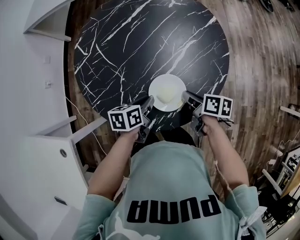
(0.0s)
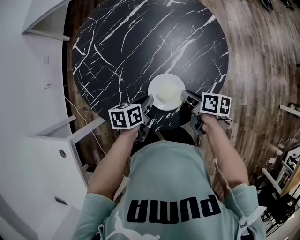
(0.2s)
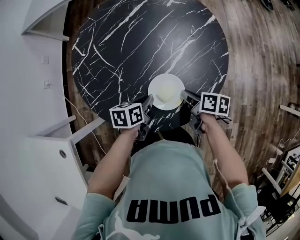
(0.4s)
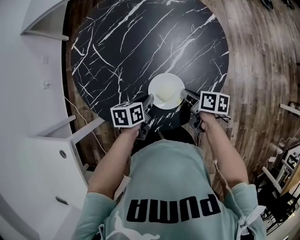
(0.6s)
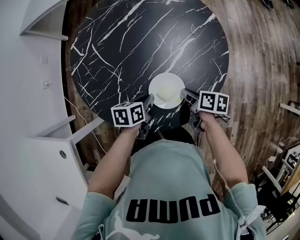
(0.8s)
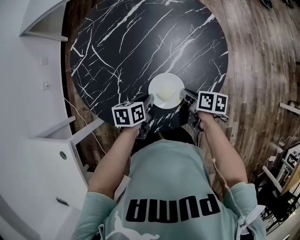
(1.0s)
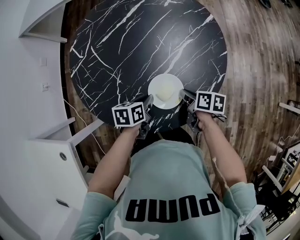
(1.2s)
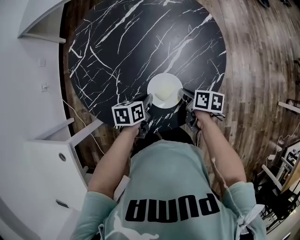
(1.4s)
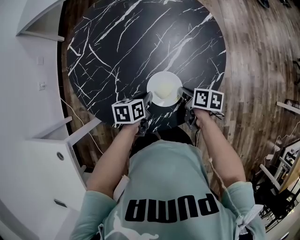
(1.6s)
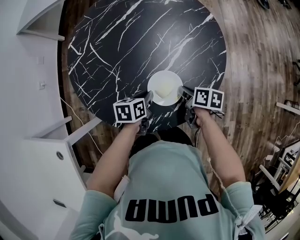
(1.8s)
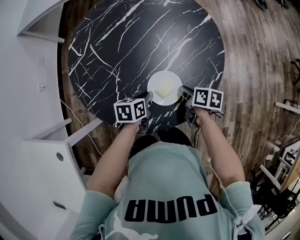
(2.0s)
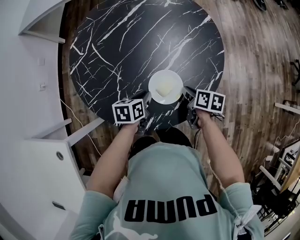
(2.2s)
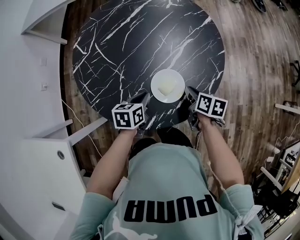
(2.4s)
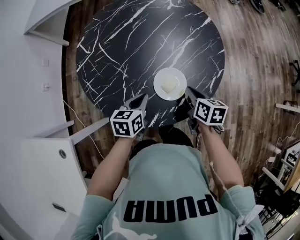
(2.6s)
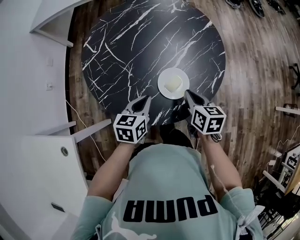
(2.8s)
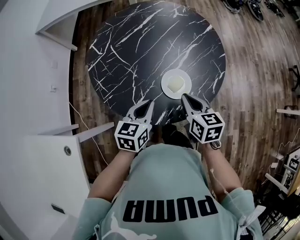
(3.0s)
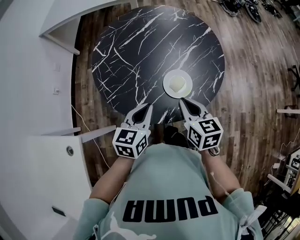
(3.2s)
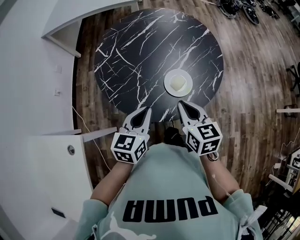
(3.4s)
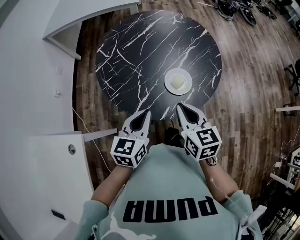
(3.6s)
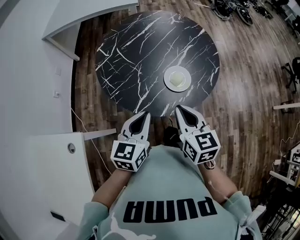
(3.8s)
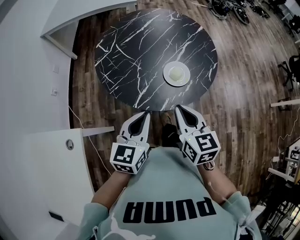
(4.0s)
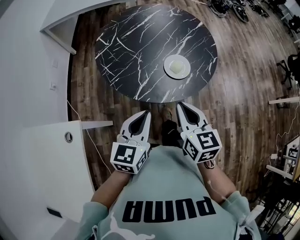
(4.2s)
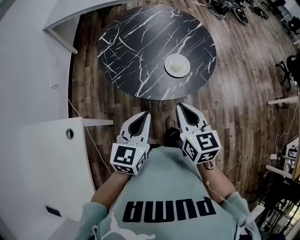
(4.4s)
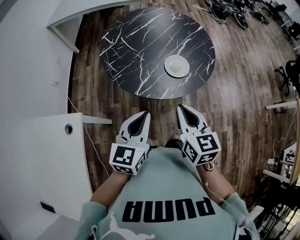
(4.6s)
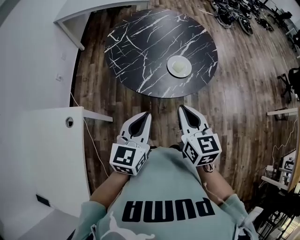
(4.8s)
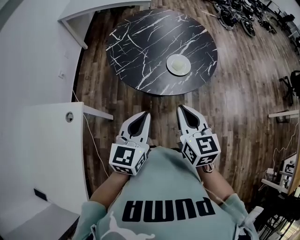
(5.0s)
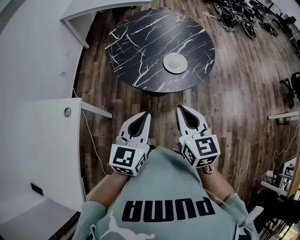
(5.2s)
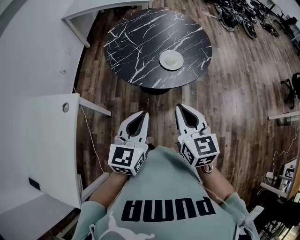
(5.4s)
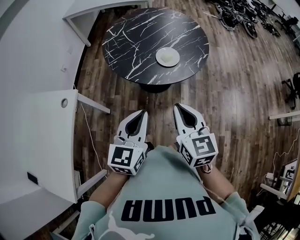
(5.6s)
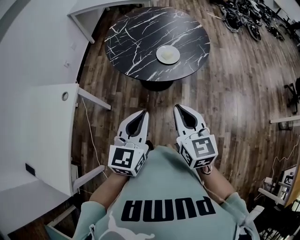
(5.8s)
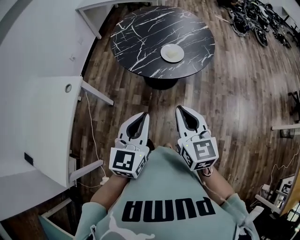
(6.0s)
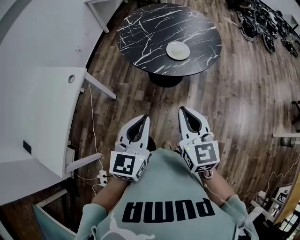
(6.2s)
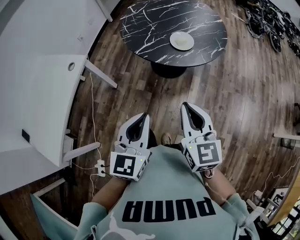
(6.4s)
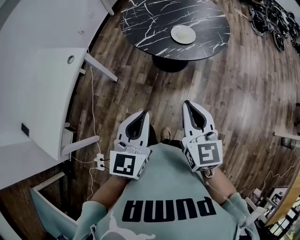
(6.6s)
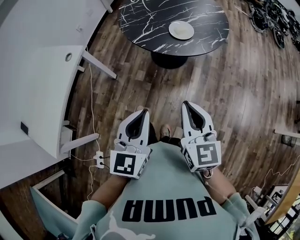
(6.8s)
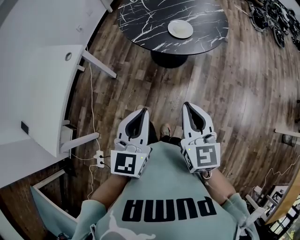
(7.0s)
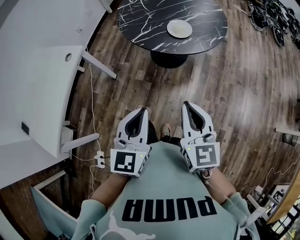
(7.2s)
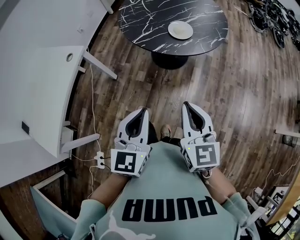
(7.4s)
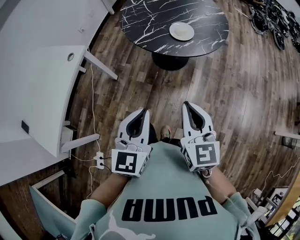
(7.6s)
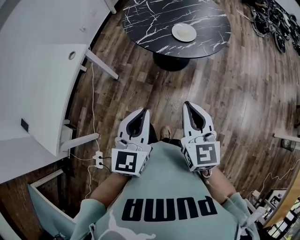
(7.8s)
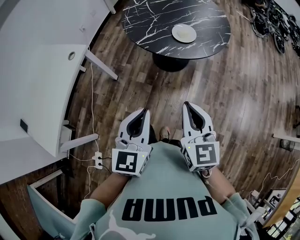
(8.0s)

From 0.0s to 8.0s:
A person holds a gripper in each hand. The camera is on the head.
From 0.0s to 1.6s: There are only small adjustments of the grippers.
From 1.6s to 3.2s: The left gripper moves upward and backward, about 20 cm, and rotates about 40 degrees. Meanwhile the right gripper travels upward, backward and to the left by roughly 25 cm, and turns by roughly 40 degrees.
From 3.2s to 4.8s: The two grippers go roughly 25 cm backward and upward.
From 4.8s to 6.4s: Both grippers move backward and to the right, approximately 25 cm. The left gripper swivels approximately 20 degrees.
From 6.4s to 8.0s: The grippers make only small movements.

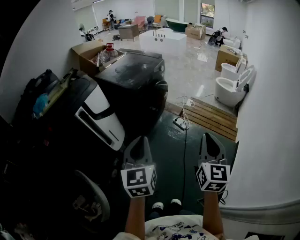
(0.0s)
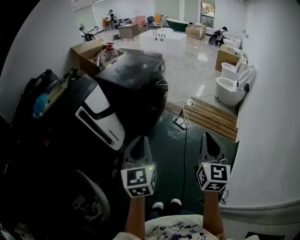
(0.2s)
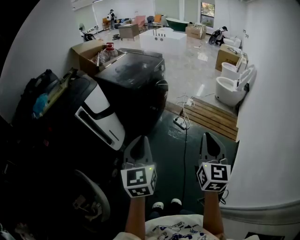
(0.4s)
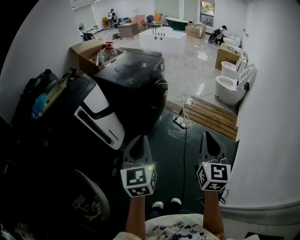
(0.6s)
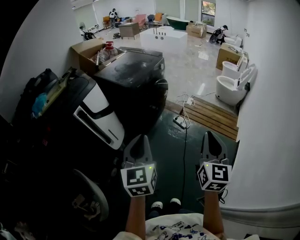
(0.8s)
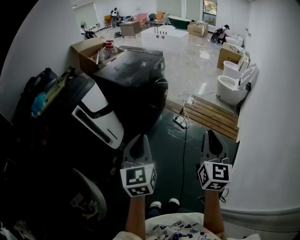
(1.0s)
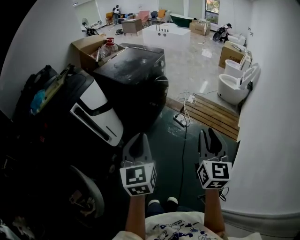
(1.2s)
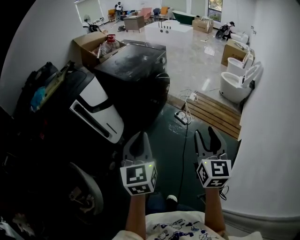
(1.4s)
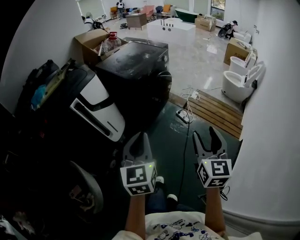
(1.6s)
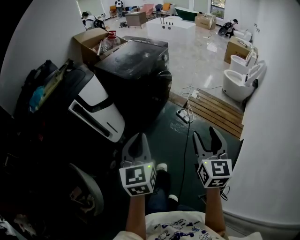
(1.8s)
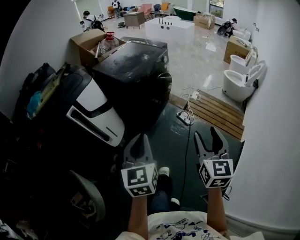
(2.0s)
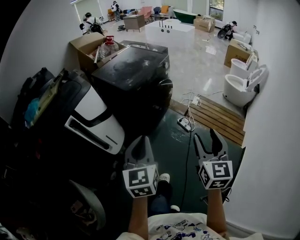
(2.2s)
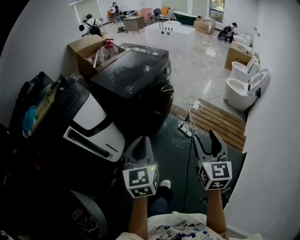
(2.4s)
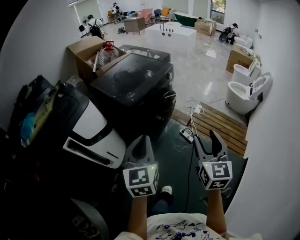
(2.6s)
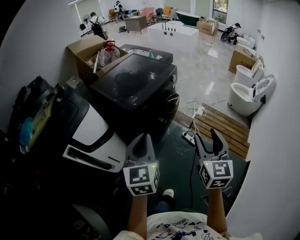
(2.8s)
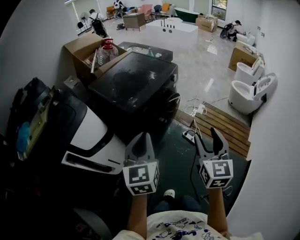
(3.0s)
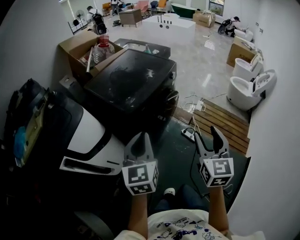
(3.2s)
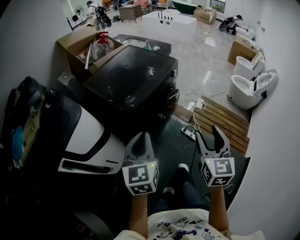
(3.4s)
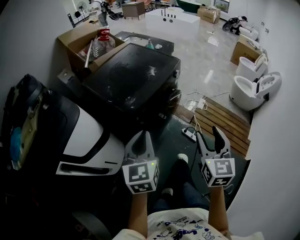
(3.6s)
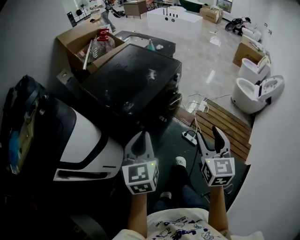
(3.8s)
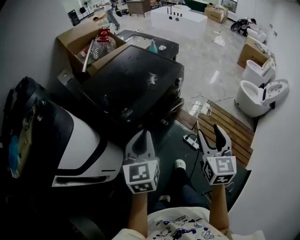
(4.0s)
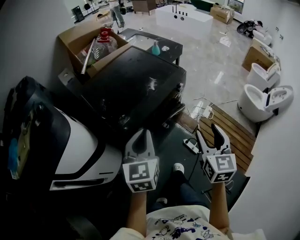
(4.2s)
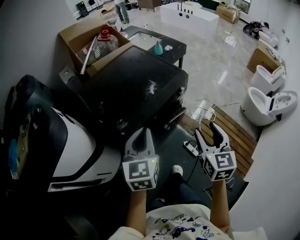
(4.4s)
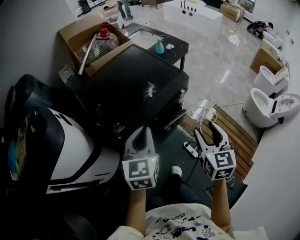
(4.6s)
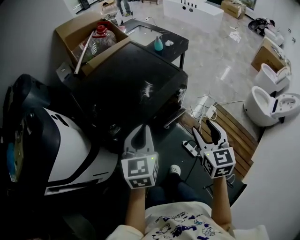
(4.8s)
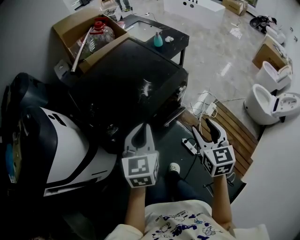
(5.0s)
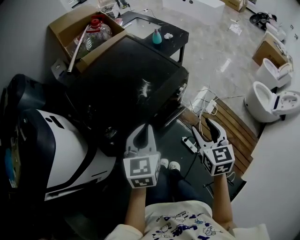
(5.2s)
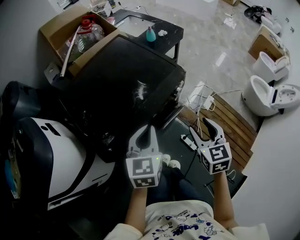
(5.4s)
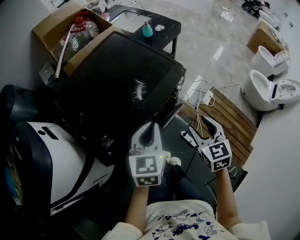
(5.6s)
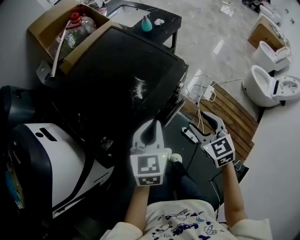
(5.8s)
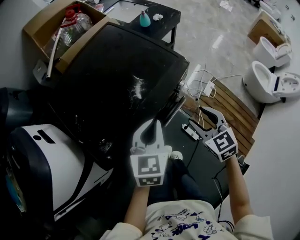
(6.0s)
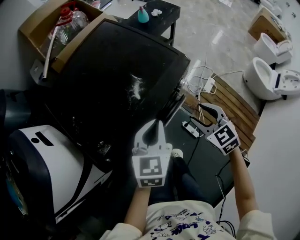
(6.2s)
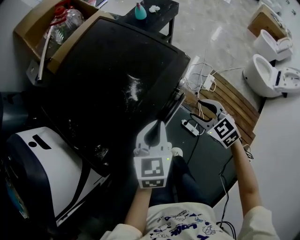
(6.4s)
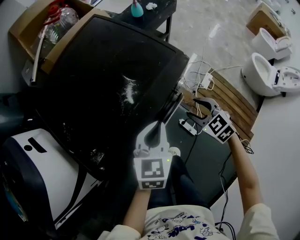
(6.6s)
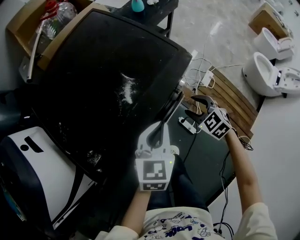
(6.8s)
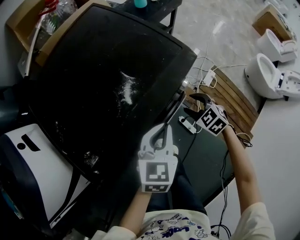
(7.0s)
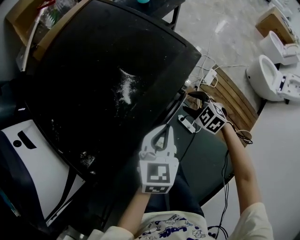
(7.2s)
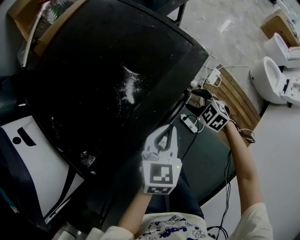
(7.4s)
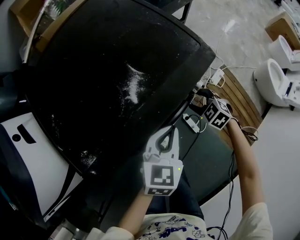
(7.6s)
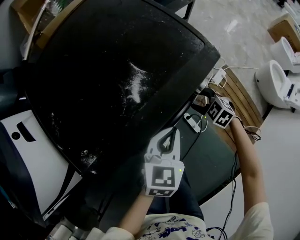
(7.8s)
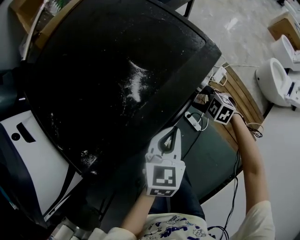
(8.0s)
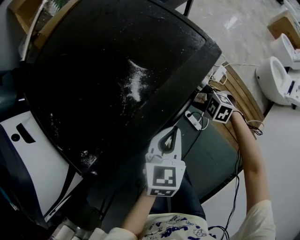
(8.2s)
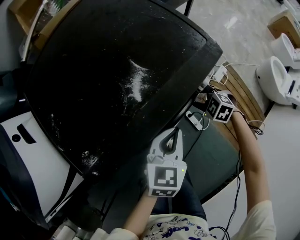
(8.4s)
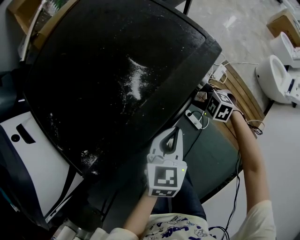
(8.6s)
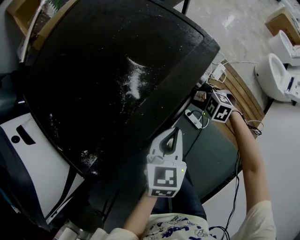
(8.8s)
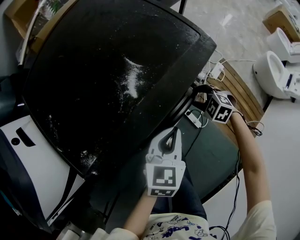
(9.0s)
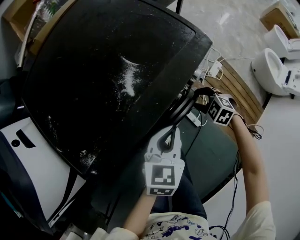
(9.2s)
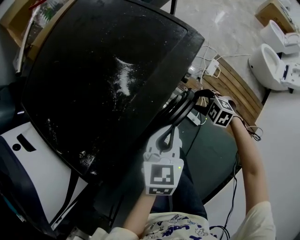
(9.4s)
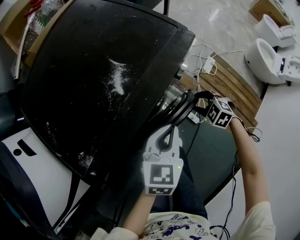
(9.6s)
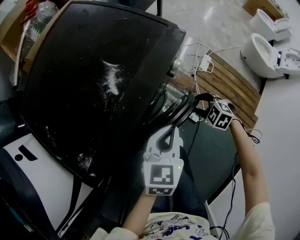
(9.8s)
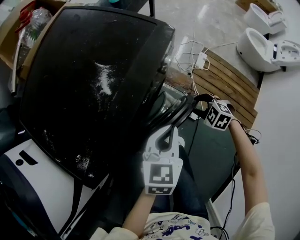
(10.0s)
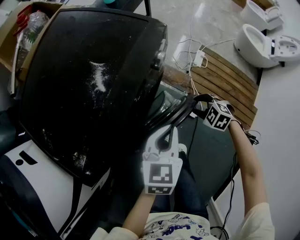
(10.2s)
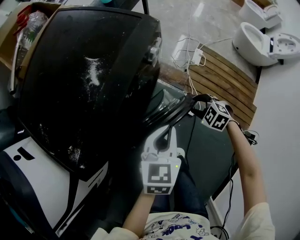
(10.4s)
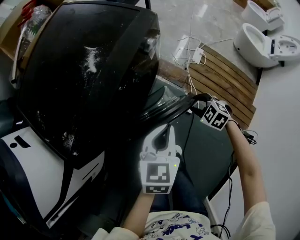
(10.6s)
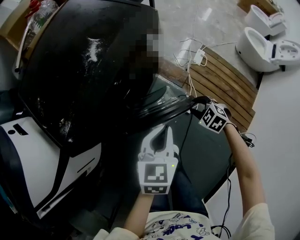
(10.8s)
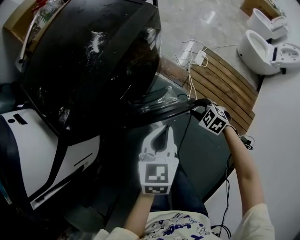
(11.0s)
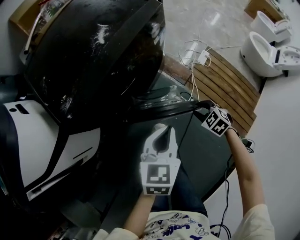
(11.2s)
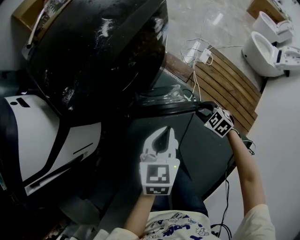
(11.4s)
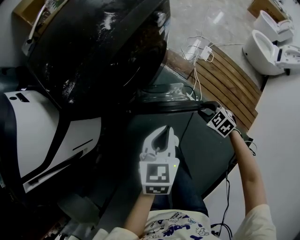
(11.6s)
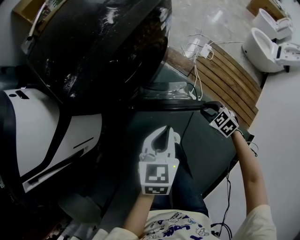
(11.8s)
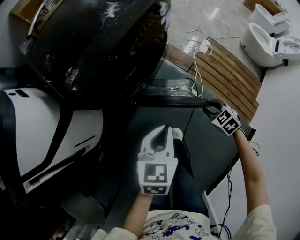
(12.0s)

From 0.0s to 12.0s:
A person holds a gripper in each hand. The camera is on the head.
From 0.0s to 1.6s: The right gripper shifts by approximately 5 cm, and opens up. Meanwhile the left gripper shifts by some 5 cm.
From 1.6s to 3.0s: Both grippers travel together forward, roughly 35 cm.
From 3.0s to 4.4s: Both grippers travel together forward, about 30 cm.
From 4.4s to 6.0s: The left gripper shifts some 20 cm forward, downward and to the right, while the right gripper travels forward and downward by approximately 20 cm, and turns by about 30 degrees.
From 6.0s to 7.6s: The left gripper is displaced downward and to the right by approximately 15 cm. Meanwhile the right gripper shifts roughly 25 cm downward, and turns by roughly 40 degrees.
From 7.6s to 9.0s: The grippers stay close to where they were, moving slightly.
From 9.0s to 10.4s: The left gripper is displaced backward by approximately 10 cm. Meanwhile the right gripper moves backward, some 15 cm, and swivels about 20 degrees.
From 10.4s to 12.0s: The right gripper moves backward, approximately 20 cm. Meanwhile the left gripper is displaced backward and to the left by about 20 cm.

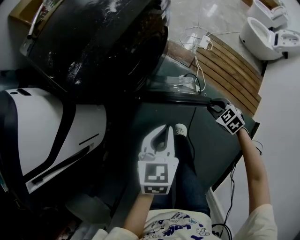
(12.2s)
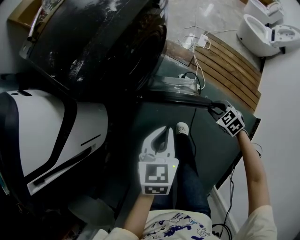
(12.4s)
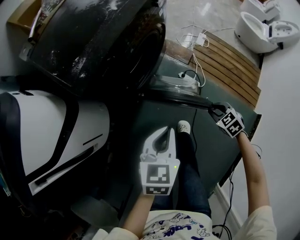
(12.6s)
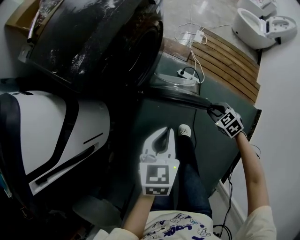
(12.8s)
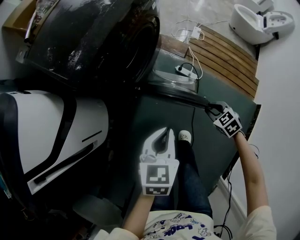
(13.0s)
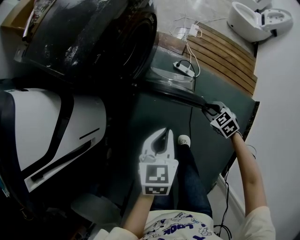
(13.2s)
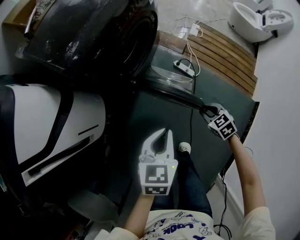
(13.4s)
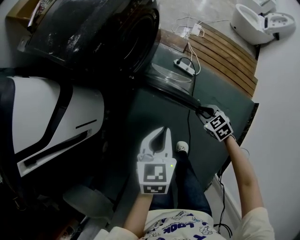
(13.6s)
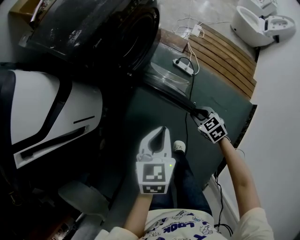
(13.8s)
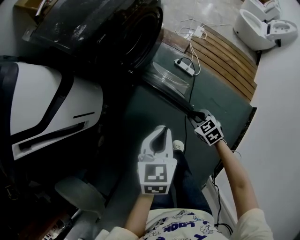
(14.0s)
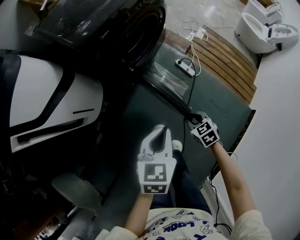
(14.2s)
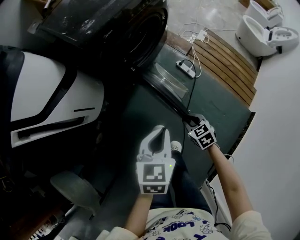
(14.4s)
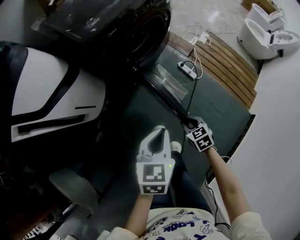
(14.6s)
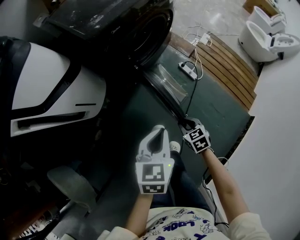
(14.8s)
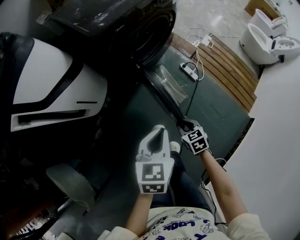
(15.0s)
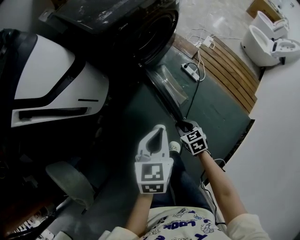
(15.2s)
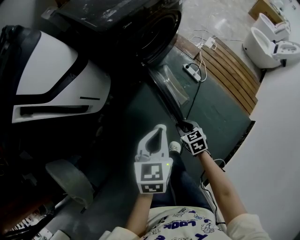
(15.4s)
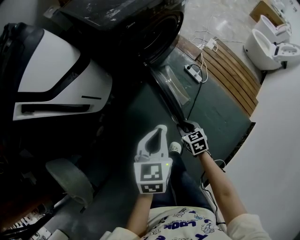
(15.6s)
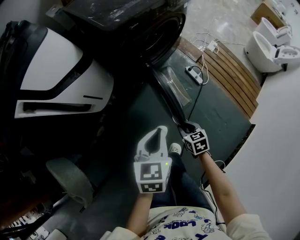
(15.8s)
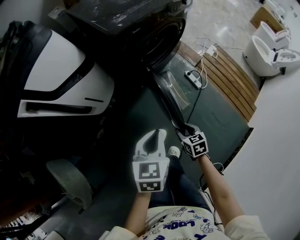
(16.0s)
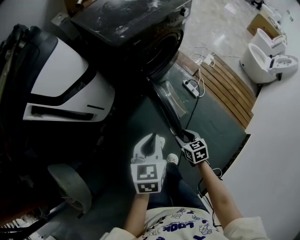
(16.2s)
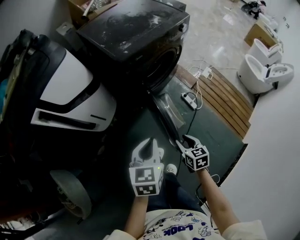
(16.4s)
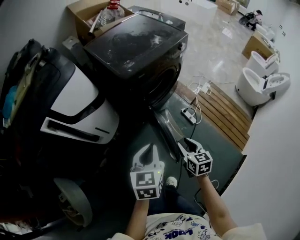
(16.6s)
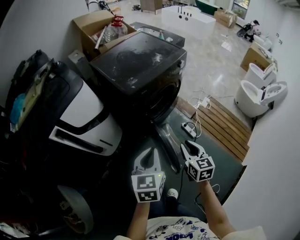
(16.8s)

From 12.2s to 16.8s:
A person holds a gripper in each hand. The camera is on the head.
From 12.2s to 13.8s: The left gripper is displaced backward by some 15 cm. The right gripper shifts roughly 20 cm backward and to the left.
From 13.8s to 15.2s: The left gripper heads backward, covering some 5 cm. Meanwhile the right gripper travels to the left and backward by roughly 10 cm.
From 15.2s to 16.8s: The right gripper shifts about 25 cm upward, and turns by roughly 30 degrees, while the left gripper is displaced upward by approximately 15 cm.
